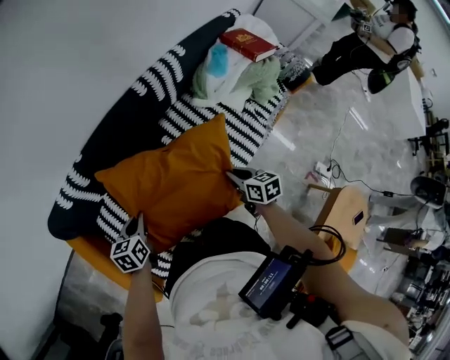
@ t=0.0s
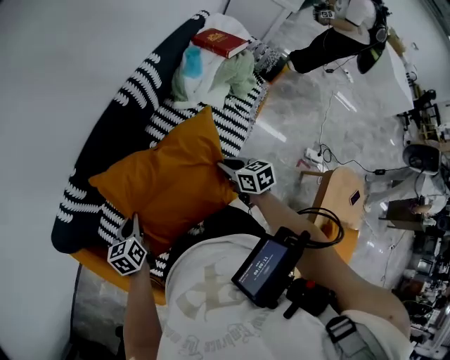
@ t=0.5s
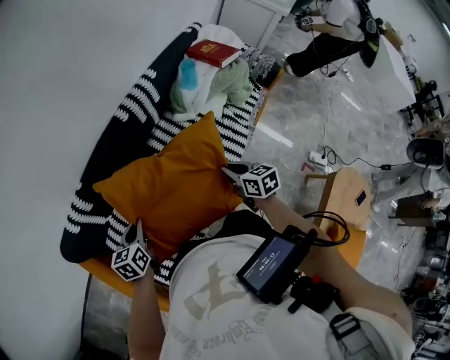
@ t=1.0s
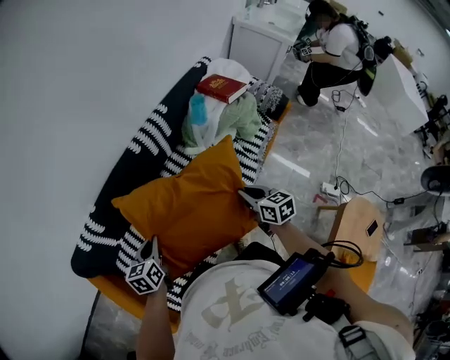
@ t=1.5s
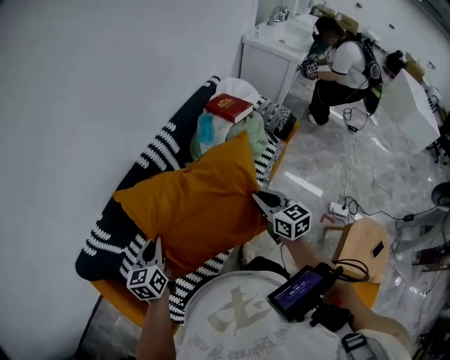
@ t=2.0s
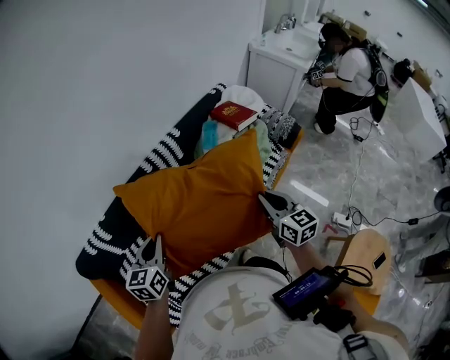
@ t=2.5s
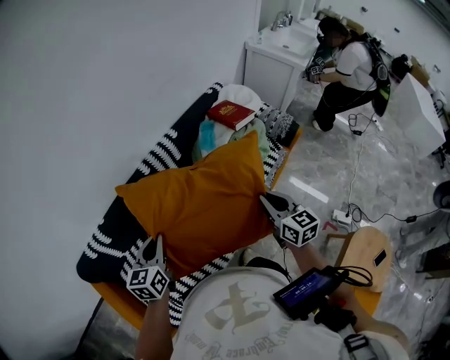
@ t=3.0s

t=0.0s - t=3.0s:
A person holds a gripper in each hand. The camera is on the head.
t=0.0s - t=1.5s: The right gripper travels upward and to the right by roughly 15 cm. Meanwhile the left gripper shifts some 15 cm to the right and upward.
t=1.5s - t=3.0s: The grippers both shift upward and to the right by some 15 cm.

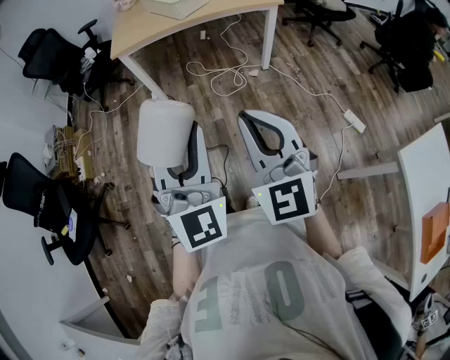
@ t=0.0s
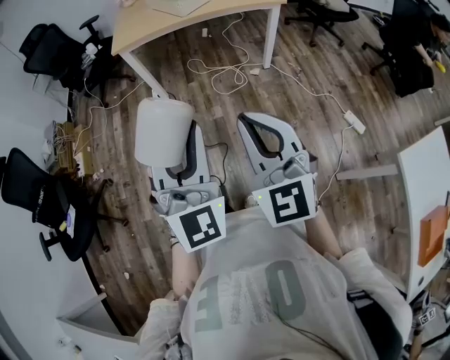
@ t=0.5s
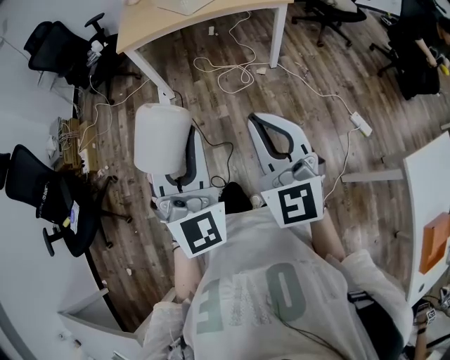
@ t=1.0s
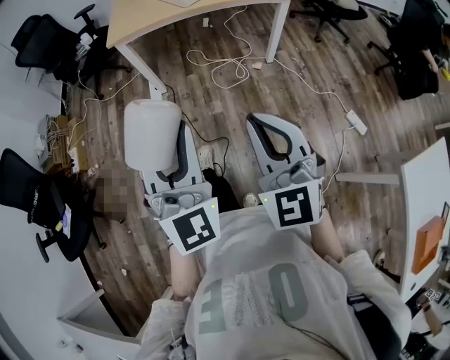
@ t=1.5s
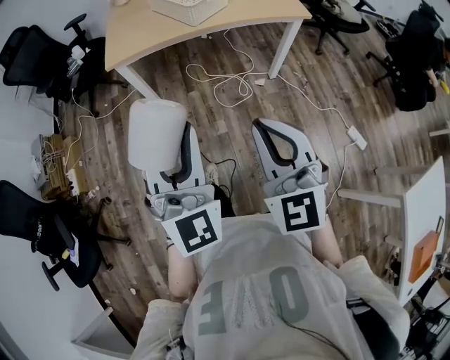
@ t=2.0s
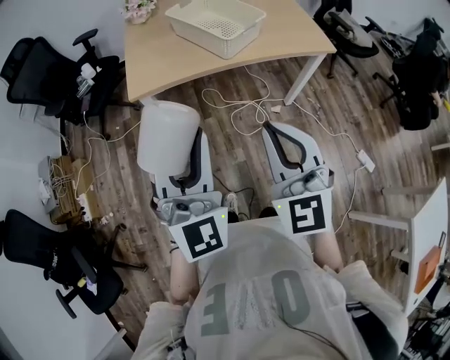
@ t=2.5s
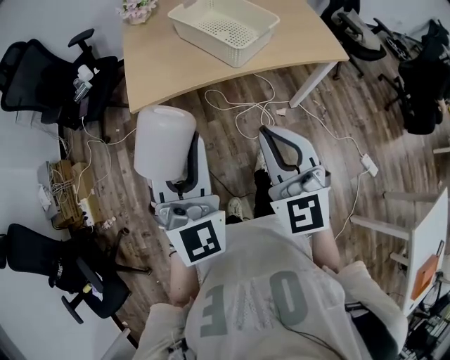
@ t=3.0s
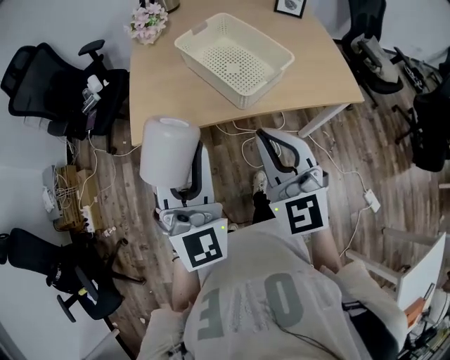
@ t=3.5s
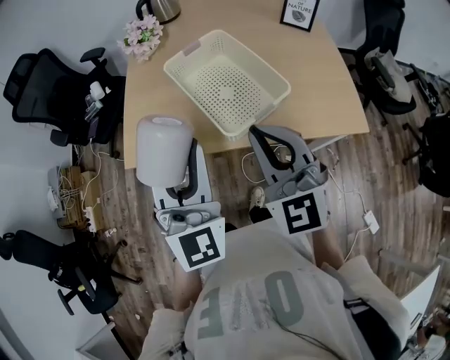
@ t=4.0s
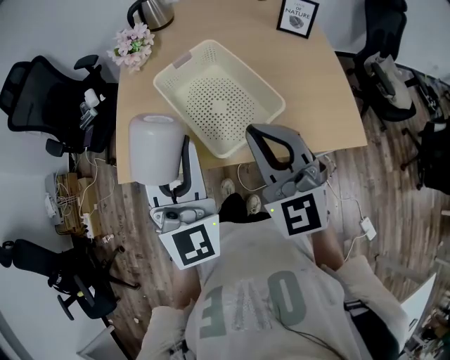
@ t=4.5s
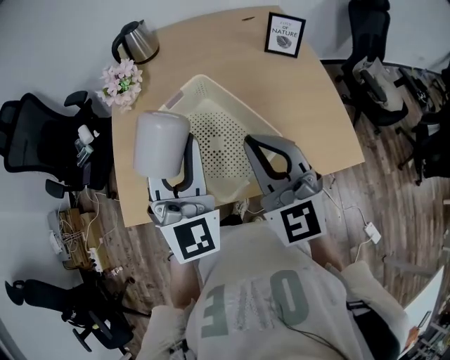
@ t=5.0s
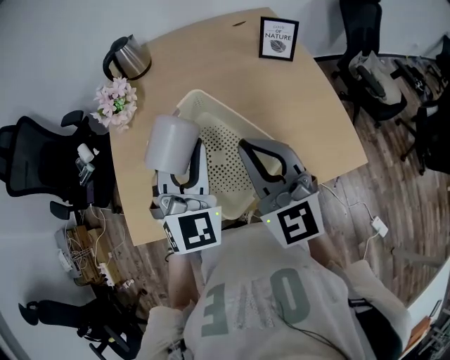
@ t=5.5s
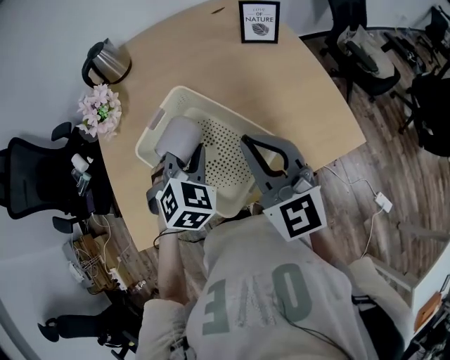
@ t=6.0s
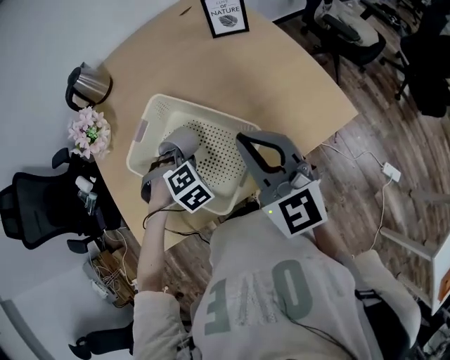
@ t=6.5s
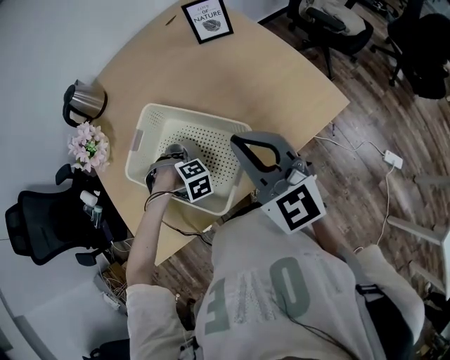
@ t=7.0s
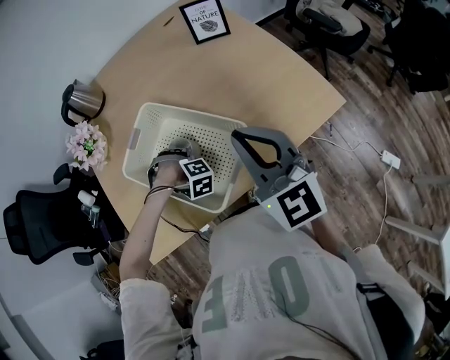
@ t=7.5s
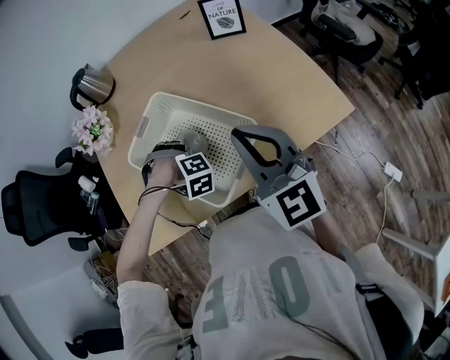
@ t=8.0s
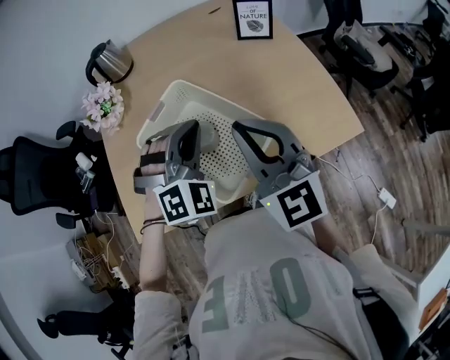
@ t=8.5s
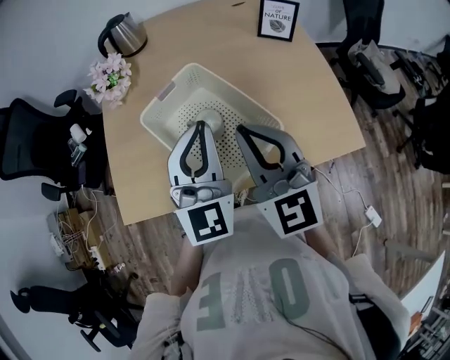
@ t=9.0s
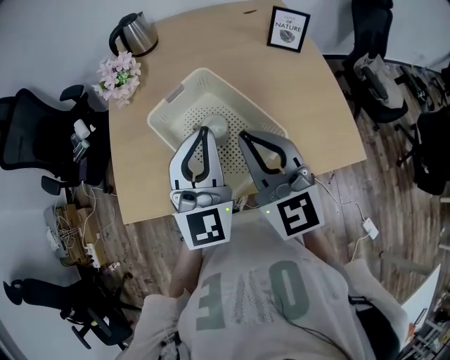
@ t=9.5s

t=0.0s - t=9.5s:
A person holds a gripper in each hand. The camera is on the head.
t=0.0s - t=2.0s: The two grippers go some 25 cm forward.
t=2.0s - t=4.0s: Both grippers are carried forward, some 50 cm.
t=4.0s - t=5.5s: The two grippers go about 20 cm forward.
t=5.5s - t=7.5s: The left gripper shifts about 30 cm downward, and points its fingers some 60 degrees further downward. The right gripper moves approximately 10 cm.
t=7.5s - t=9.5s: The left gripper is displaced upward by roughly 30 cm, and points its fingers some 80 degrees further upward, while the right gripper shifts by about 10 cm.

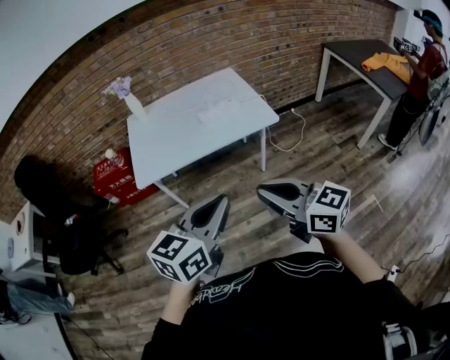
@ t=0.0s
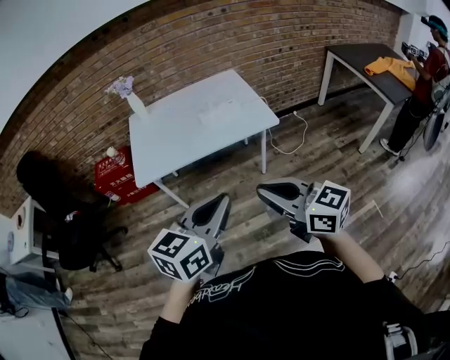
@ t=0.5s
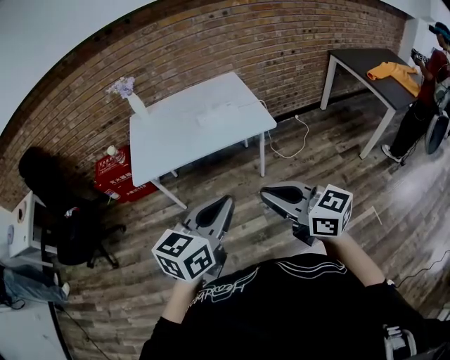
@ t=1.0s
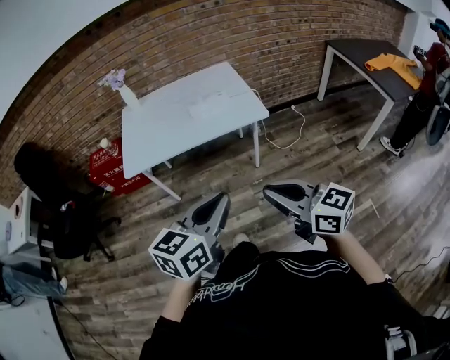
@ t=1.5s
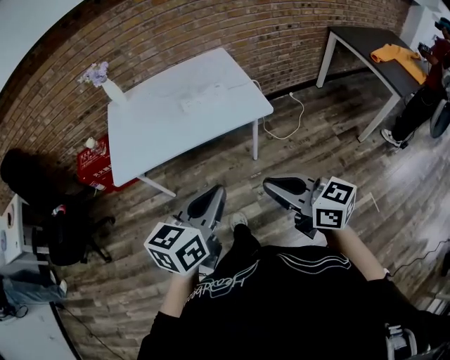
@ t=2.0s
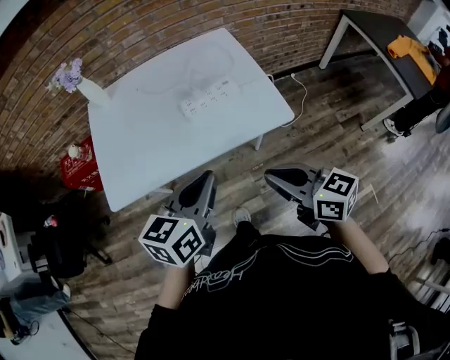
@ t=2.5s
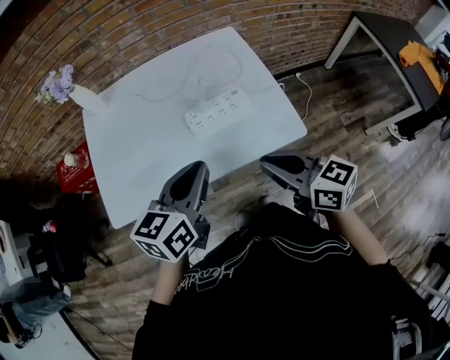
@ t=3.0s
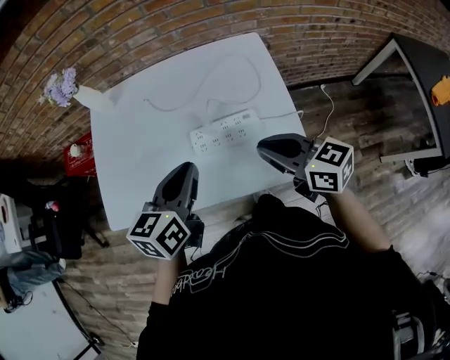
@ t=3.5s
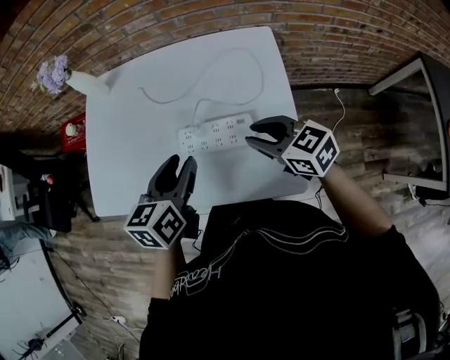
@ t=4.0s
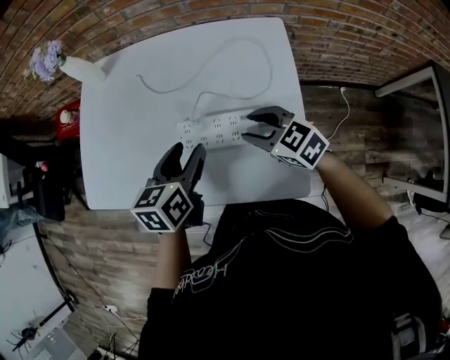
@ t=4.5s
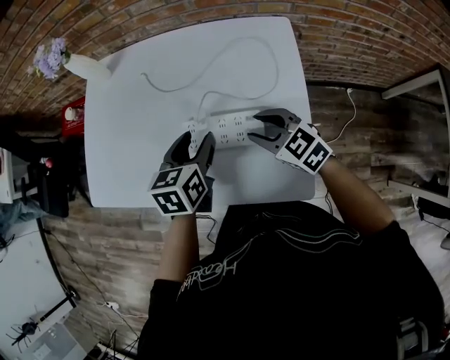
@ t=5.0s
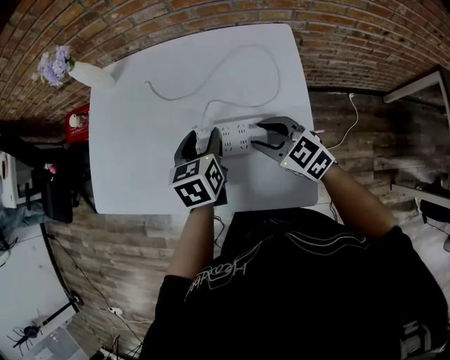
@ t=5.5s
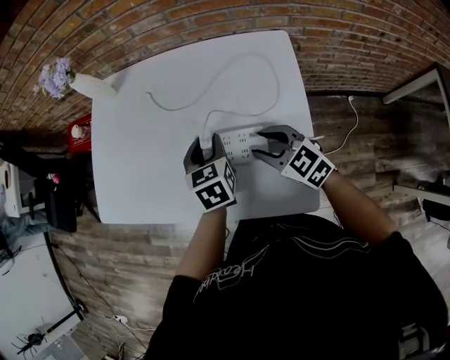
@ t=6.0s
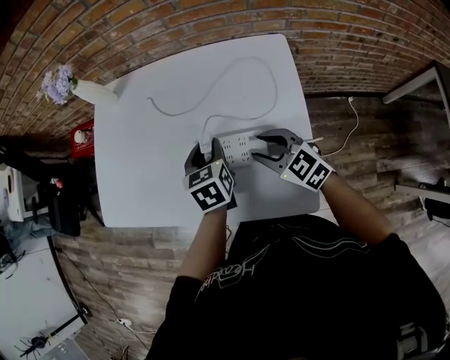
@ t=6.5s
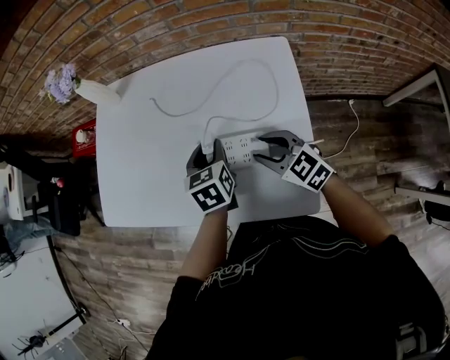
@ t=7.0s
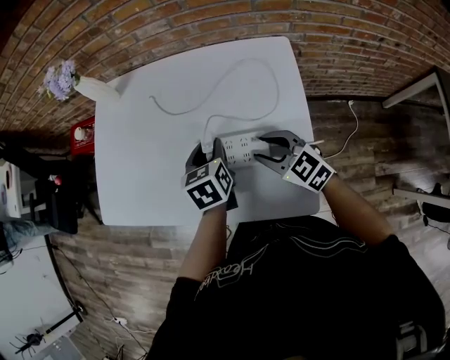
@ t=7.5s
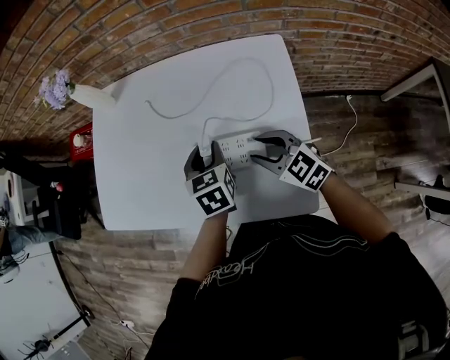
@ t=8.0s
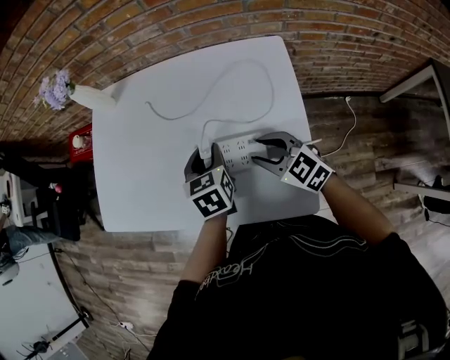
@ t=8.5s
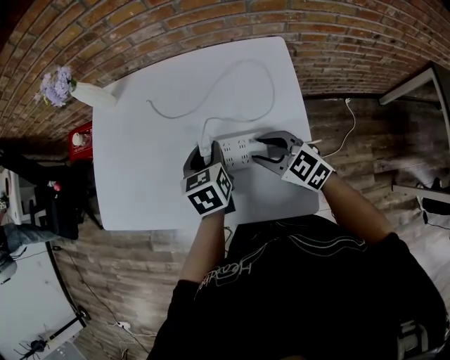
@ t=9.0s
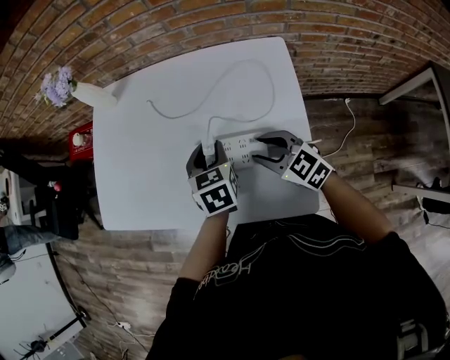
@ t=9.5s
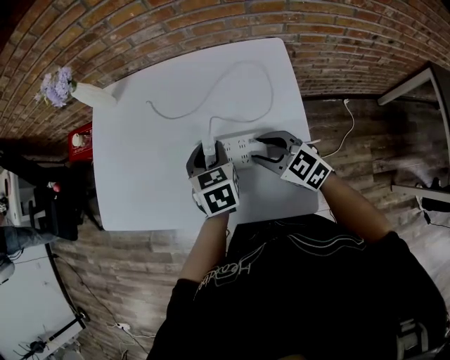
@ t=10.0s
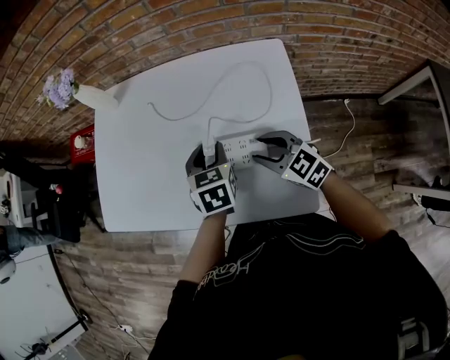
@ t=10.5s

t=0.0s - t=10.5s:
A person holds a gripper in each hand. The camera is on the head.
t=0.0s - t=2.0s: The right gripper travels to the right, downward and forward by about 15 cm. The left gripper travels forward, downward and to the right by some 15 cm.
t=2.0s - t=4.0s: The pair of grippers is taken approximately 50 cm. The left gripper swivels some 30 degrees, and opens up. Meanwhile the right gripper rotates approximately 30 degrees, and opens.
t=4.0s - t=6.5s: The left gripper heads downward, forward and to the right, covering some 15 cm, and turns by about 20 degrees. The right gripper is displaced downward by about 5 cm.
t=6.5s - t=10.5s: The grippers make only small movements.

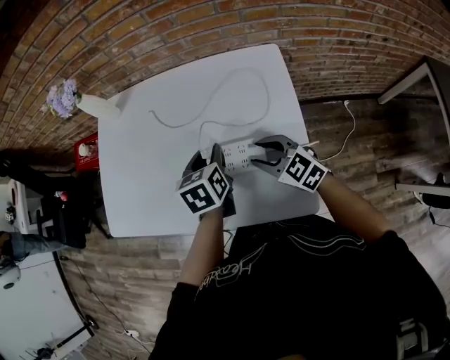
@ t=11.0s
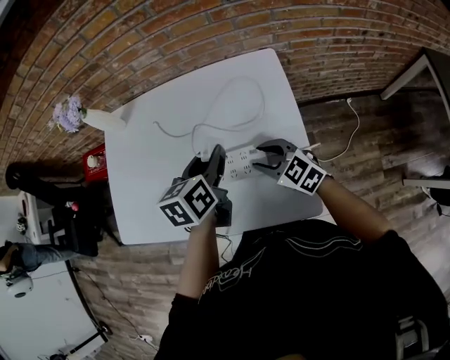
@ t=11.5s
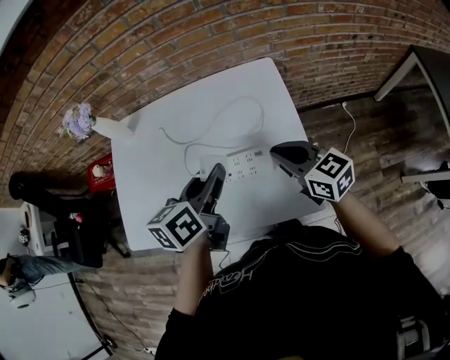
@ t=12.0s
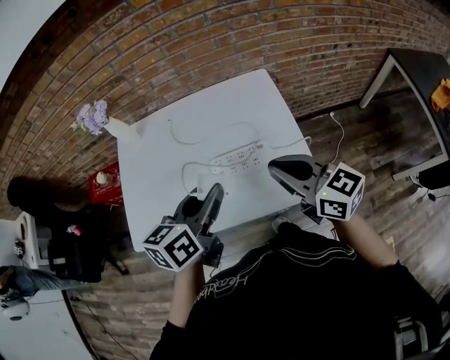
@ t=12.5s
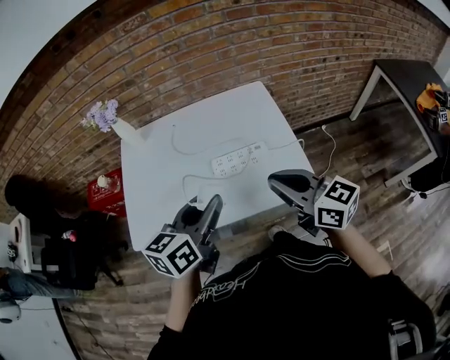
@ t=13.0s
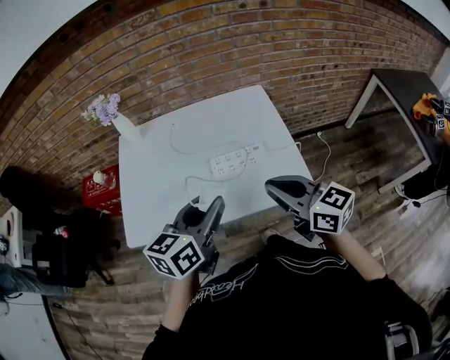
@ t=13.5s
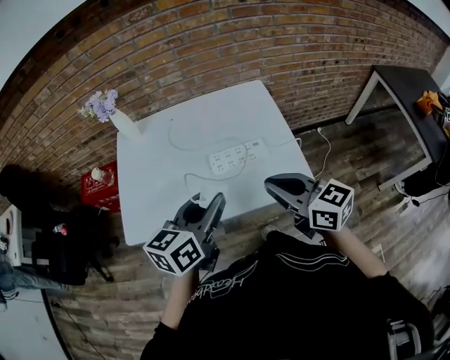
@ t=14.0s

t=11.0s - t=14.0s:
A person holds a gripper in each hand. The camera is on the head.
t=11.0s - t=12.5s: Both grippers travel together upward, roughly 20 cm. The right gripper swivels about 40 degrees, and closes up, while the left gripper turns by some 40 degrees.
t=12.5s - t=14.0s: Both grippers travel together backward, approximately 10 cm.
